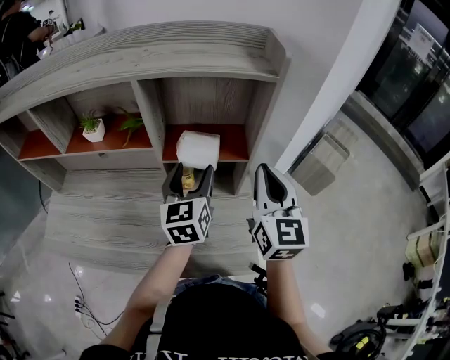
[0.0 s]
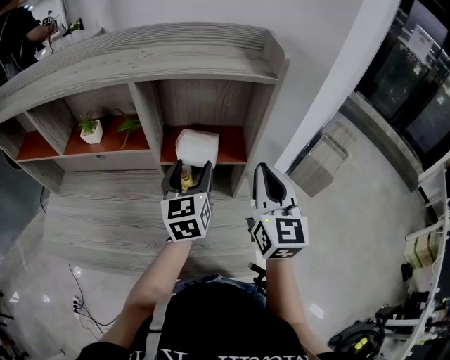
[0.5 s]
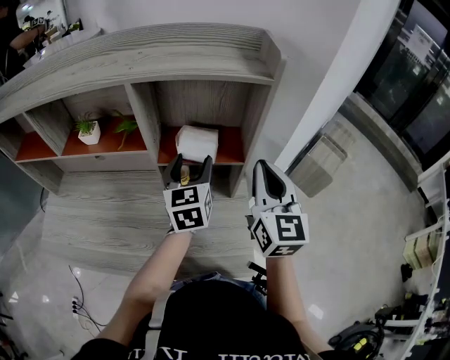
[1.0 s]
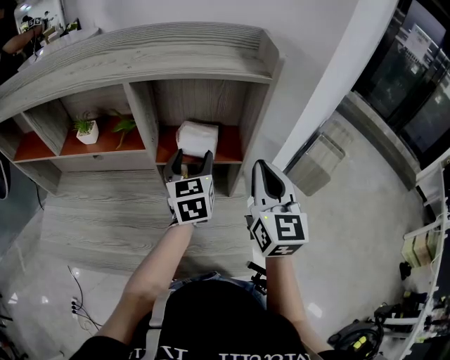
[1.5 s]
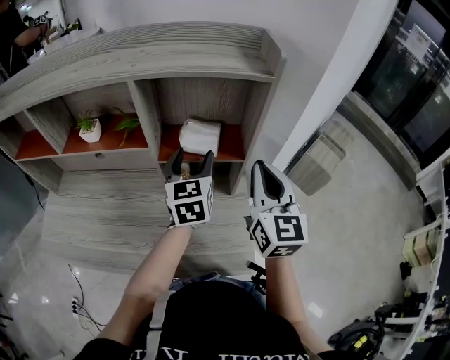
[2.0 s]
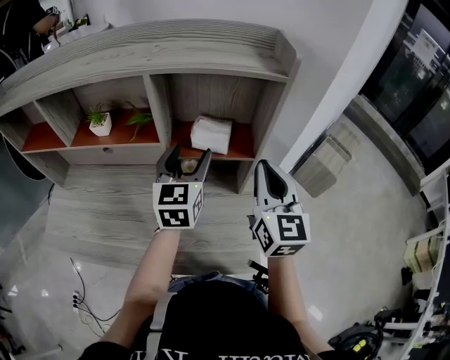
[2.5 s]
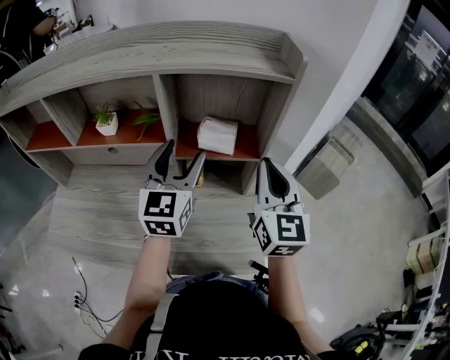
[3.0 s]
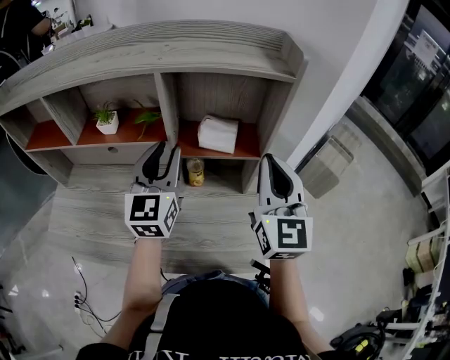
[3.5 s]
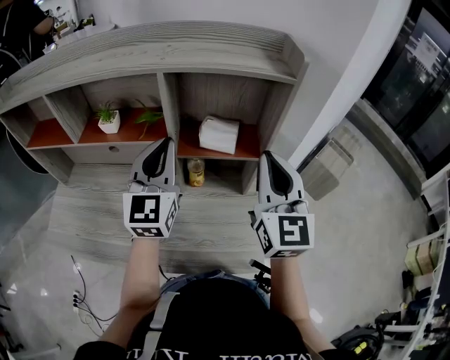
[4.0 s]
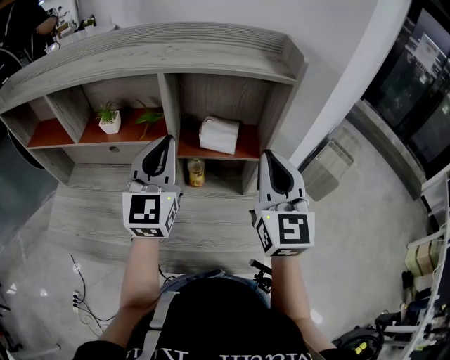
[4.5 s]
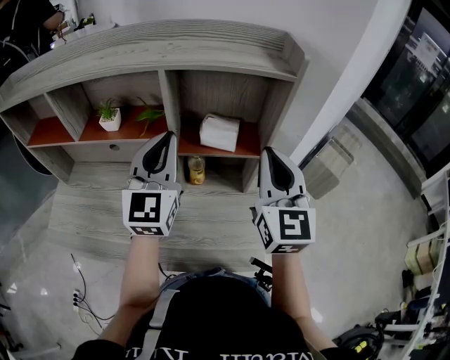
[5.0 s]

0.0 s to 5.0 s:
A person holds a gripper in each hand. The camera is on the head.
0.0 to 2.5 s: The grippers move only a little.
2.5 to 5.0 s: The left gripper moves upward and to the left, approximately 10 cm, and closes. Meanwhile the right gripper changes place by roughly 5 cm.

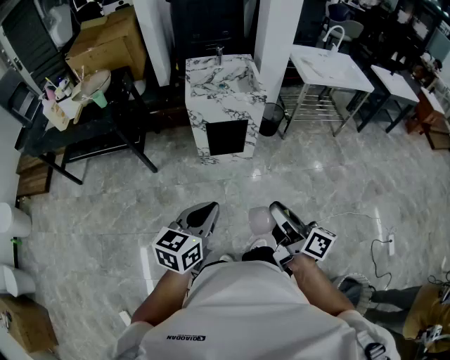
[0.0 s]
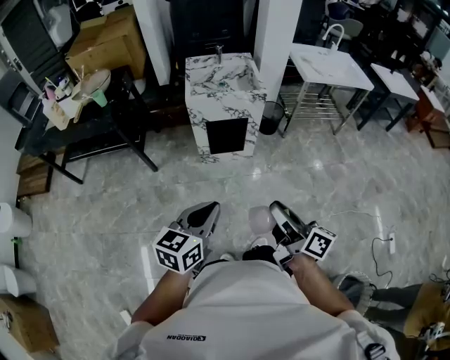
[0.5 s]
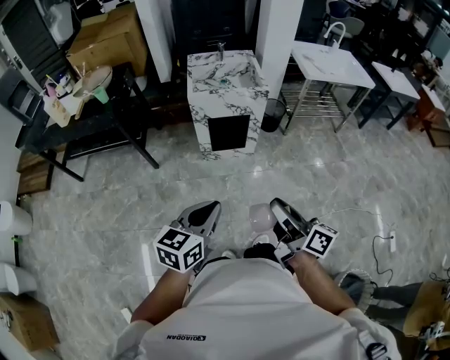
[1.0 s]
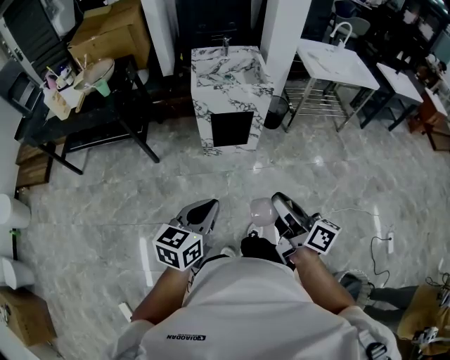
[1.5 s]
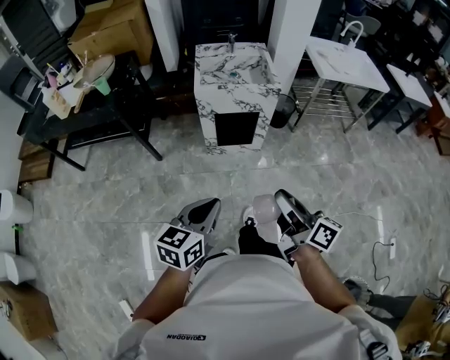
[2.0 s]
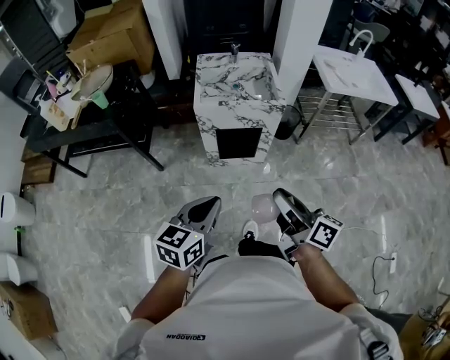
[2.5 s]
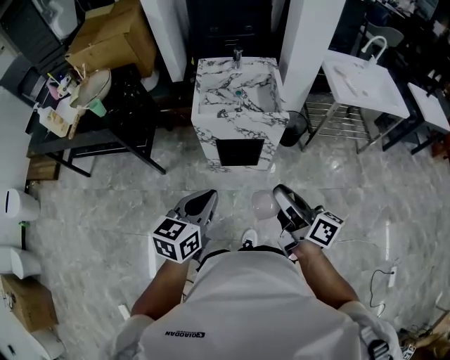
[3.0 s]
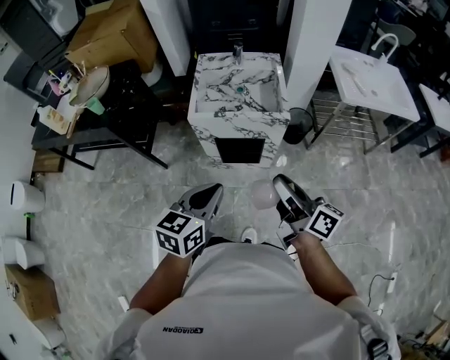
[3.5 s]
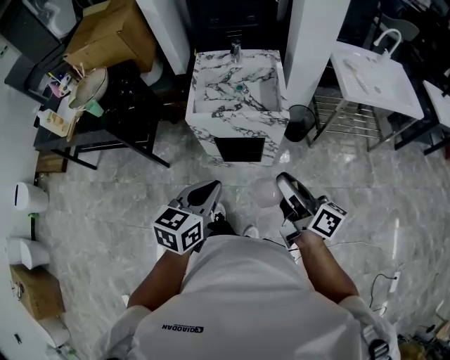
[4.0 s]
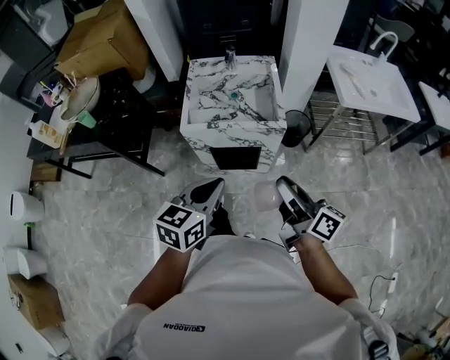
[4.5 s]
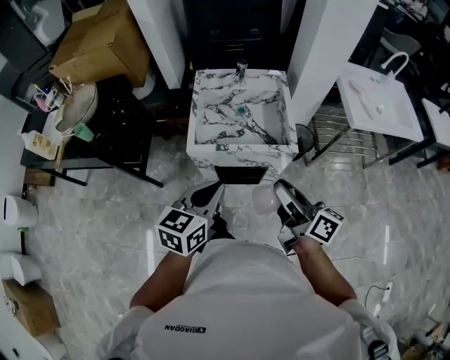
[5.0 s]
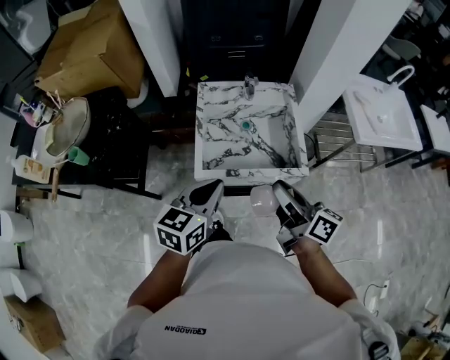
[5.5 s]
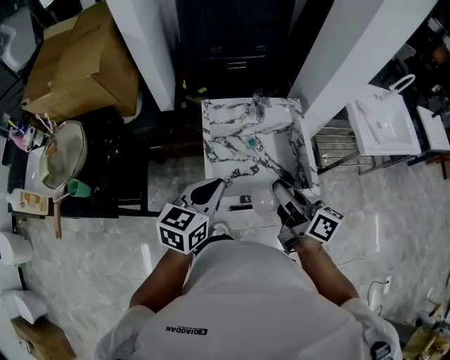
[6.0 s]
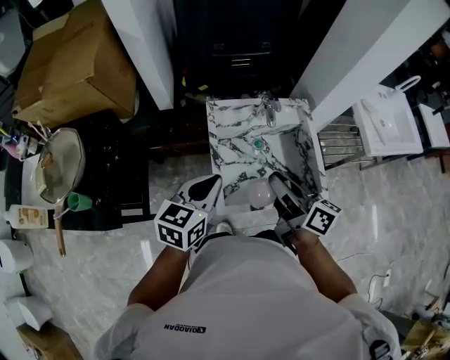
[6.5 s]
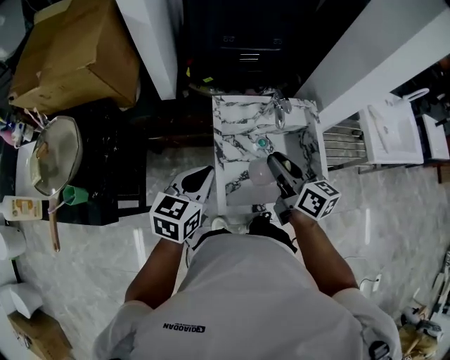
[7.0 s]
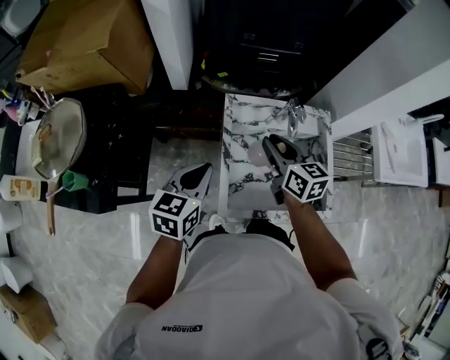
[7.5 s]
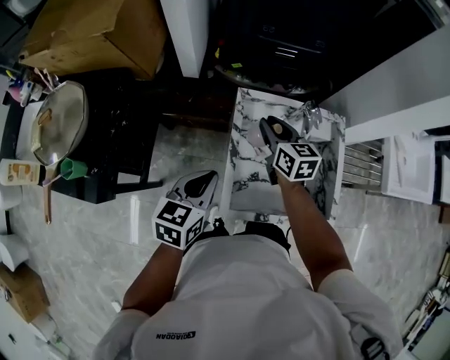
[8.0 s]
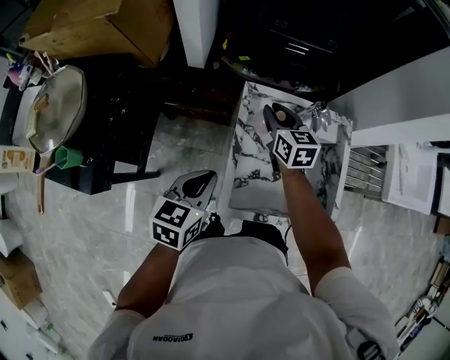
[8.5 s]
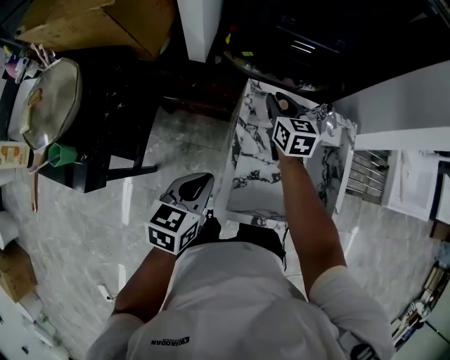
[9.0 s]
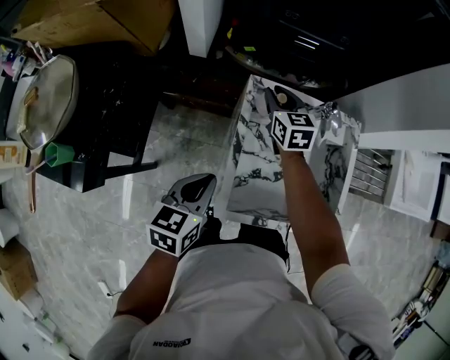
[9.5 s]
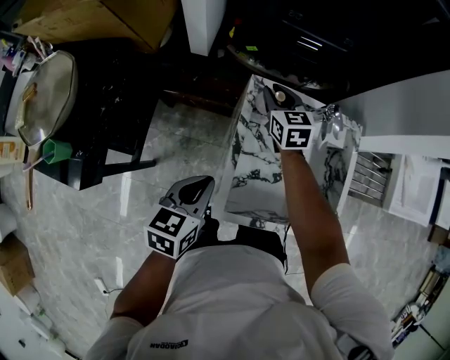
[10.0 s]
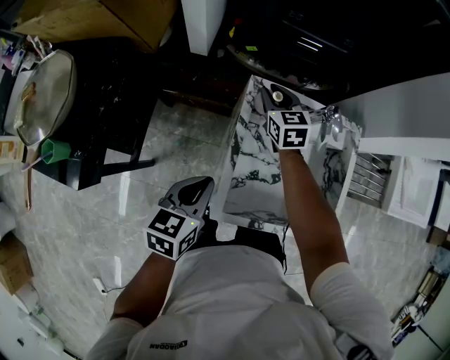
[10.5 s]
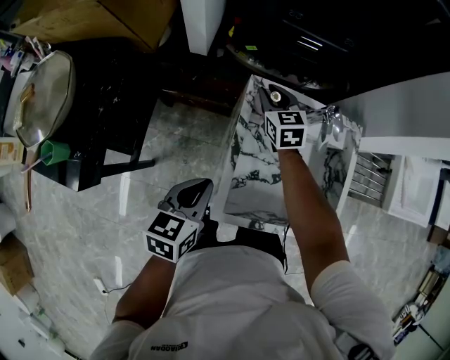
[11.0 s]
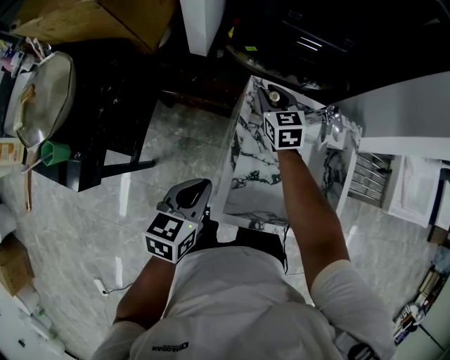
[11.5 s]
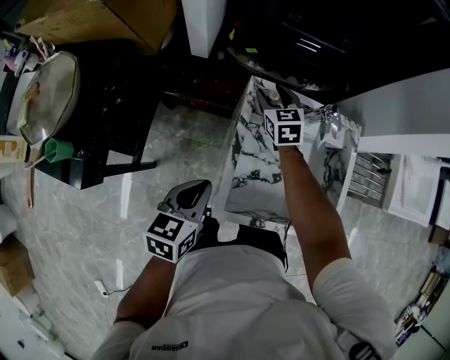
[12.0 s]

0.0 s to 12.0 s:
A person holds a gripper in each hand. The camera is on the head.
0.0 to 2.0 s: The left gripper moves approximately 5 cm. Meanwhile the right gripper is displaced forward by approximately 5 cm.
2.0 to 4.0 s: The right gripper goes some 30 cm forward; the left gripper heads forward and to the right, covering roughly 30 cm.
4.0 to 6.0 s: Both grippers move forward and to the left, some 40 cm.
6.0 to 8.0 s: The left gripper moves forward, to the left and downward, roughly 15 cm; the right gripper is displaced forward, to the left and downward by some 35 cm, and changes its angle by approximately 40 degrees.
8.0 to 10.0 s: The left gripper shifts roughly 5 cm downward, while the right gripper travels forward and downward by about 10 cm.
10.0 to 12.0 s: The right gripper opens up.

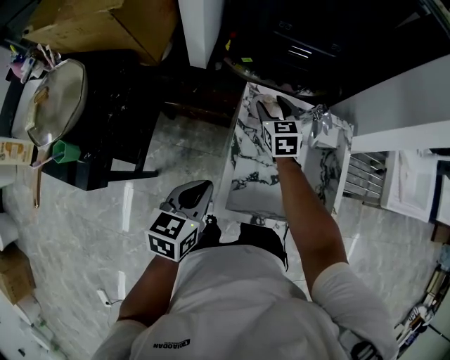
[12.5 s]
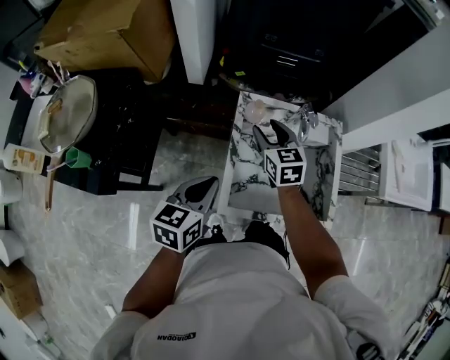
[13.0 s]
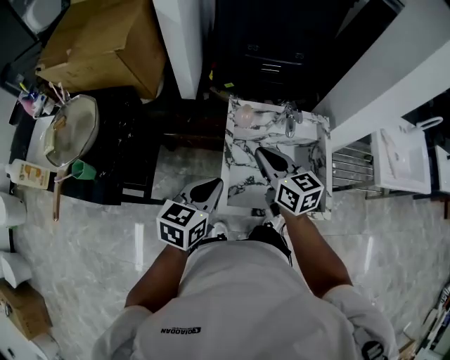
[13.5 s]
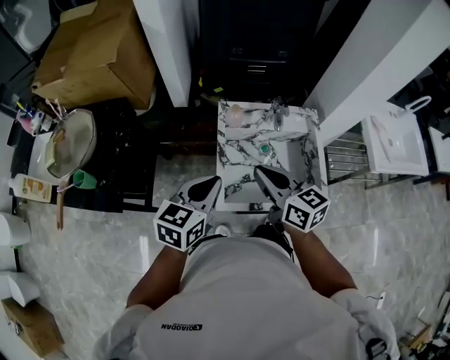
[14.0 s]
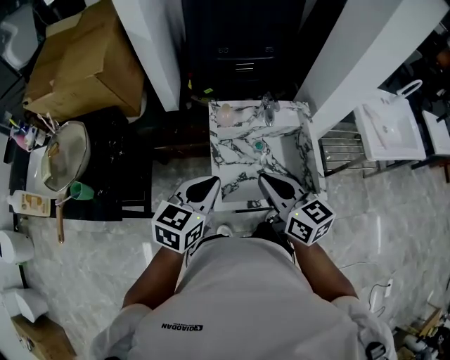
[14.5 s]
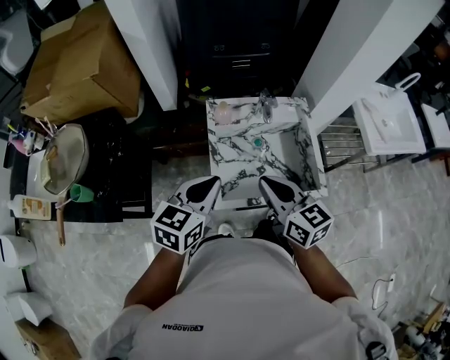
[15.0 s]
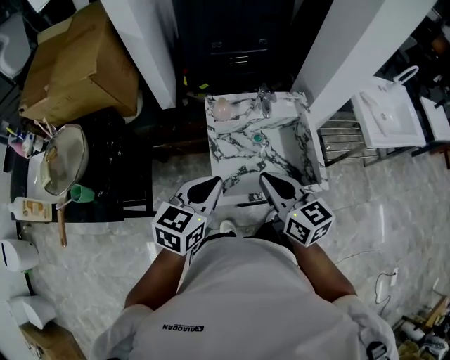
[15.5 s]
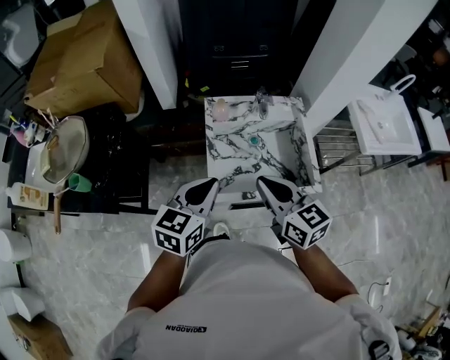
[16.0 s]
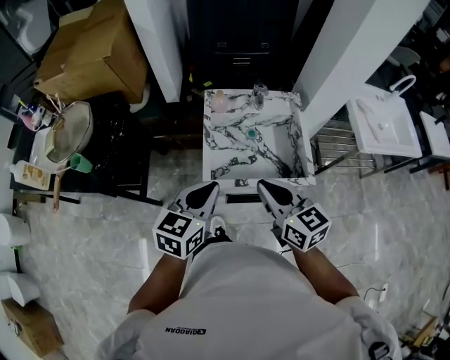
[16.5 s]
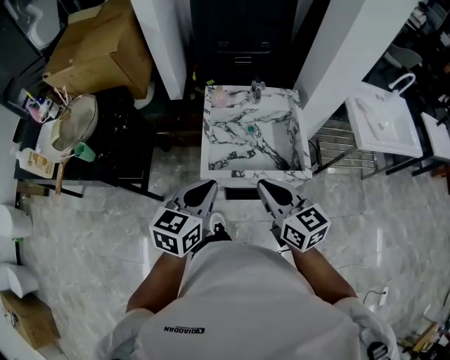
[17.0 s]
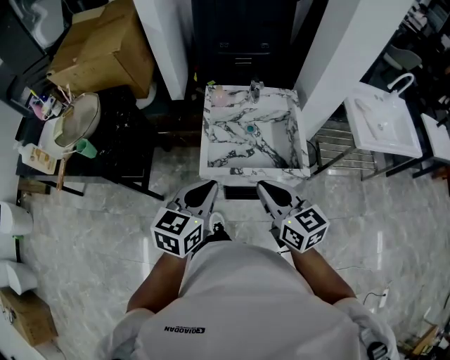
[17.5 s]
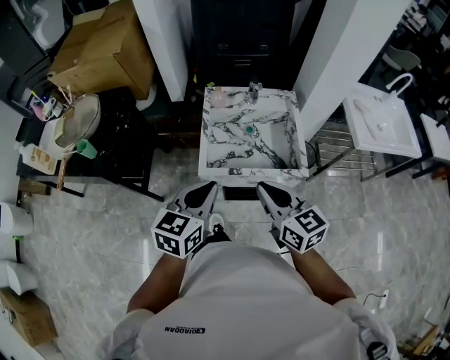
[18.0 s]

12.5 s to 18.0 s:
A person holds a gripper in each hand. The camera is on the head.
12.5 to 14.5 s: The right gripper travels backward and upward by some 35 cm, rotates about 30 degrees, and closes its fingers. Meanwhile the left gripper moves upward and to the right, some 15 cm, and turns by approximately 20 degrees.
14.5 to 16.0 s: The grippers make only small movements.
16.0 to 18.0 s: The left gripper moves backward, some 15 cm, while the right gripper is displaced backward and to the right by roughly 15 cm.

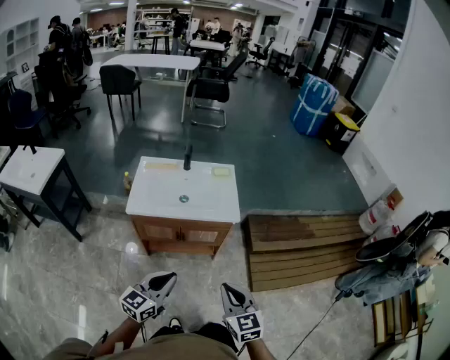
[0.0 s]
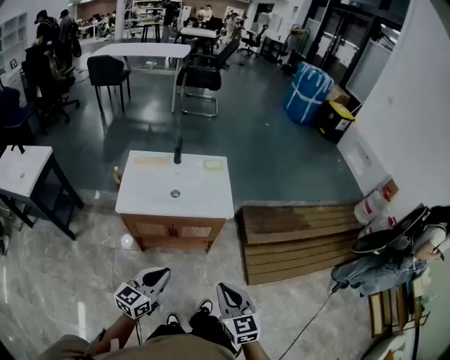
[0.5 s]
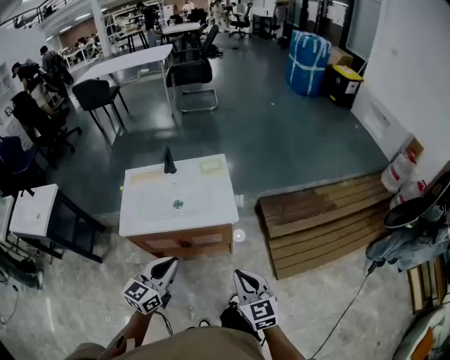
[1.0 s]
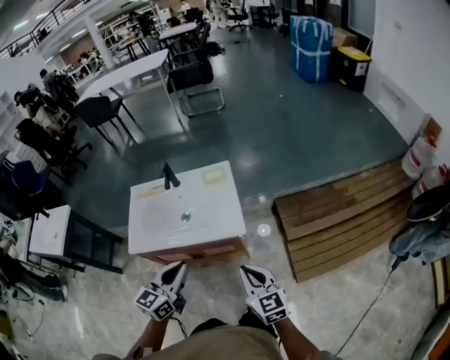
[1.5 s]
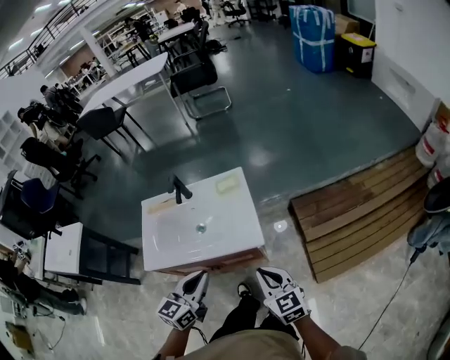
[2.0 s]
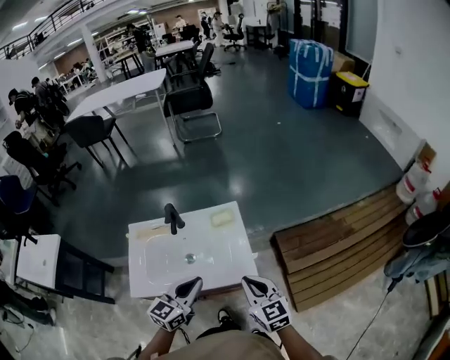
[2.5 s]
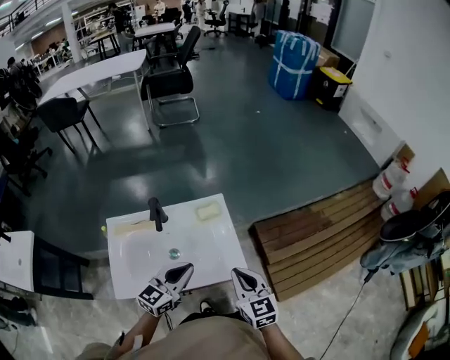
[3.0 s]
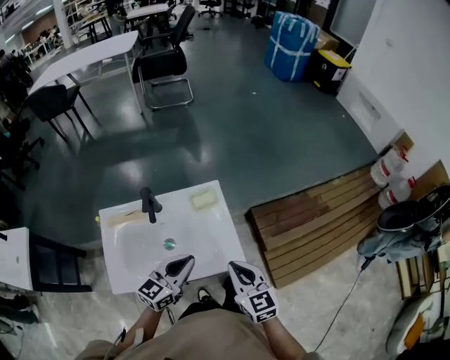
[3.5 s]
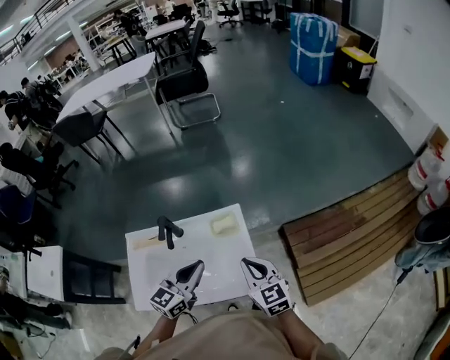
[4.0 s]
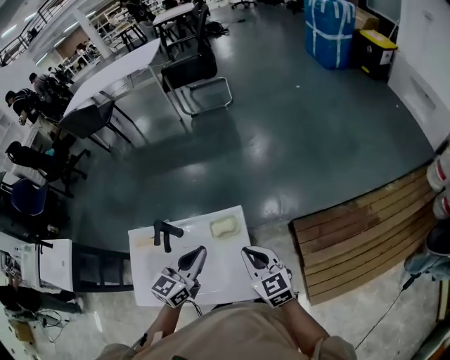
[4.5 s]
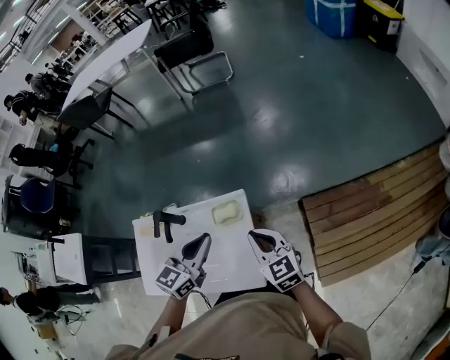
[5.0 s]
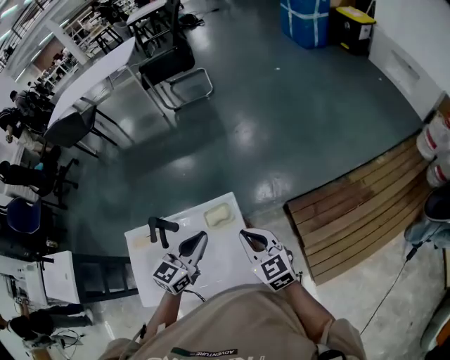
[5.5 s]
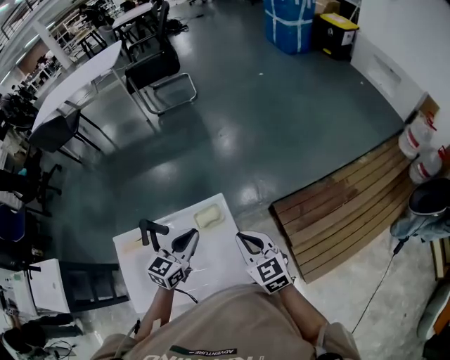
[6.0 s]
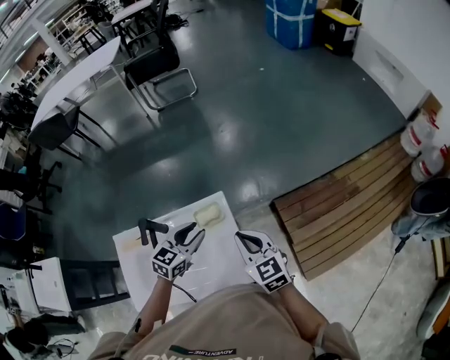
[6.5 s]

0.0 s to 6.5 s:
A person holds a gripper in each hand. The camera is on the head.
0.0 to 2.0 s: The grippers both shift forward by about 30 cm.
2.0 to 4.5 s: Both grippers travel together forward, some 30 cm.
4.5 to 6.5 s: The left gripper heads downward, covering approximately 10 cm, rotates roughly 20 degrees, and opens up.
